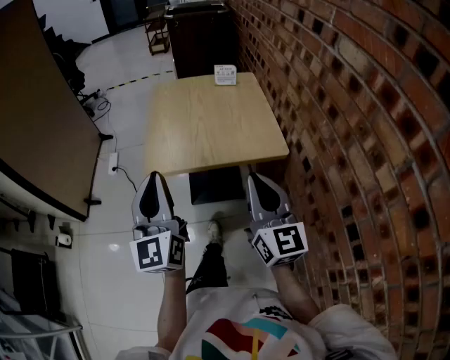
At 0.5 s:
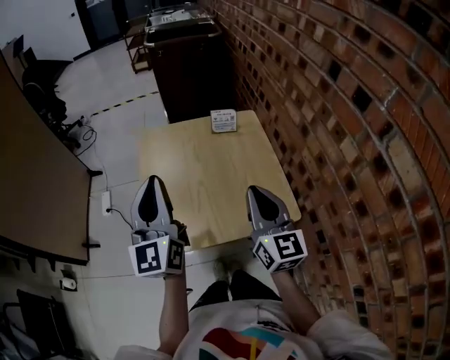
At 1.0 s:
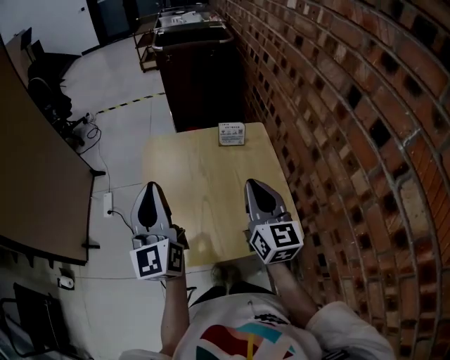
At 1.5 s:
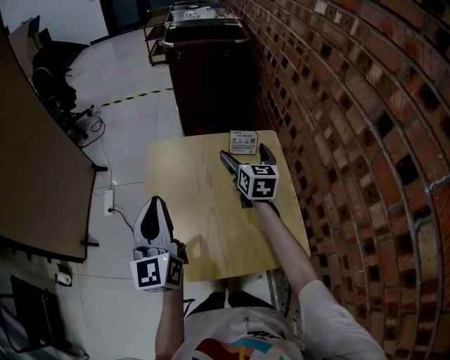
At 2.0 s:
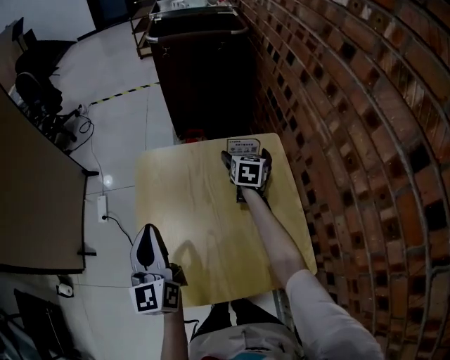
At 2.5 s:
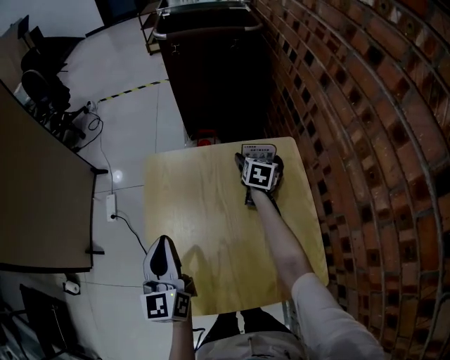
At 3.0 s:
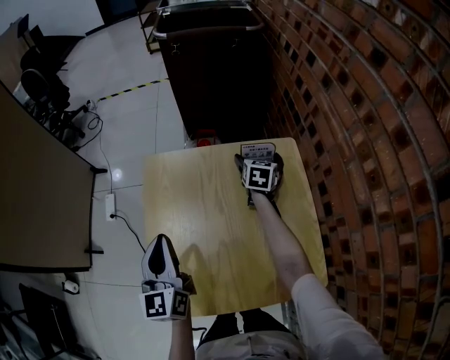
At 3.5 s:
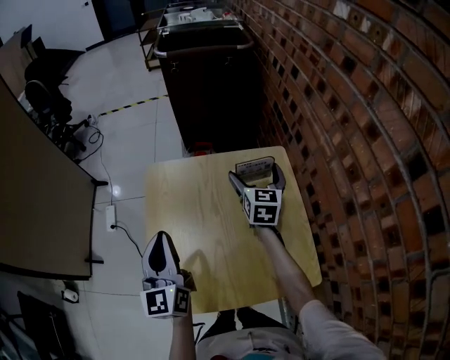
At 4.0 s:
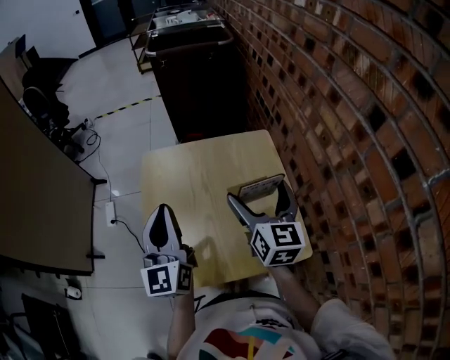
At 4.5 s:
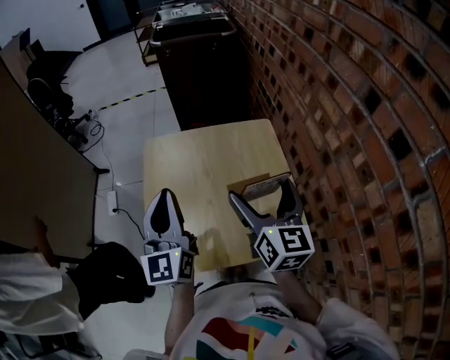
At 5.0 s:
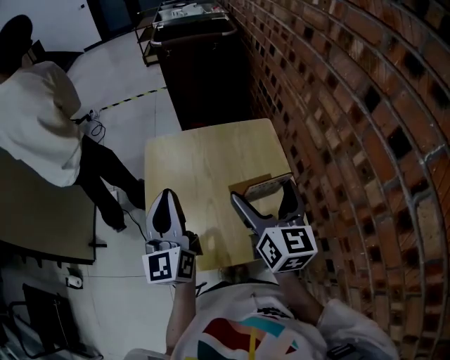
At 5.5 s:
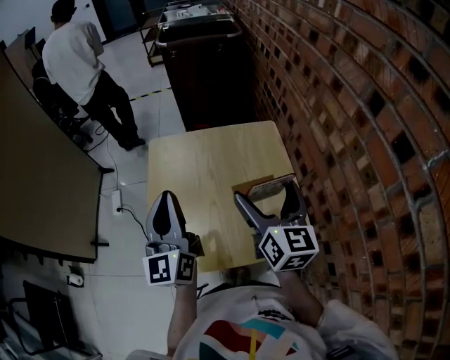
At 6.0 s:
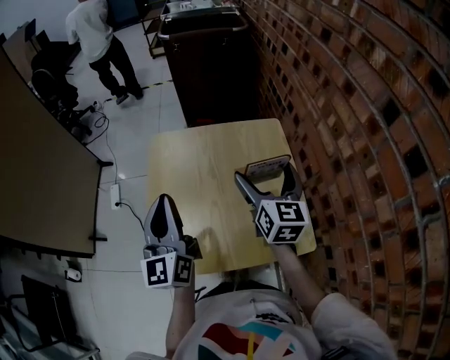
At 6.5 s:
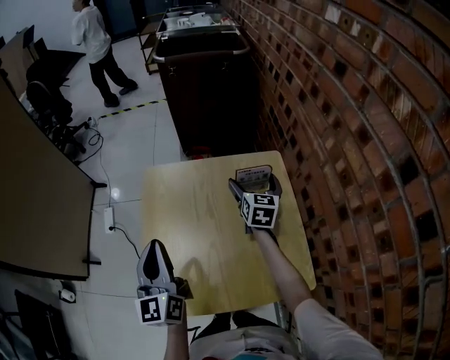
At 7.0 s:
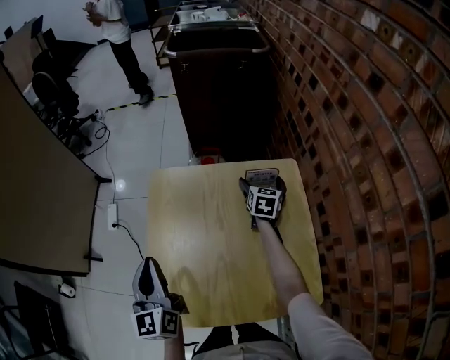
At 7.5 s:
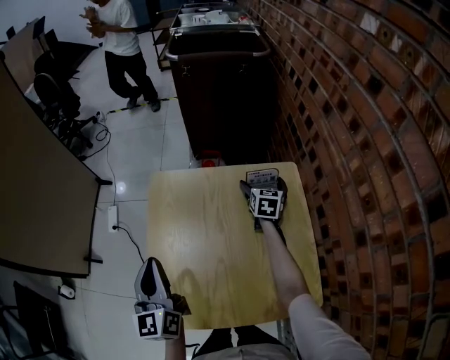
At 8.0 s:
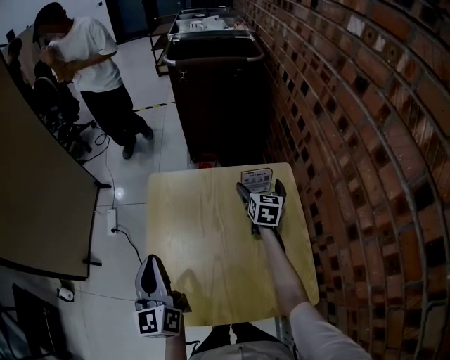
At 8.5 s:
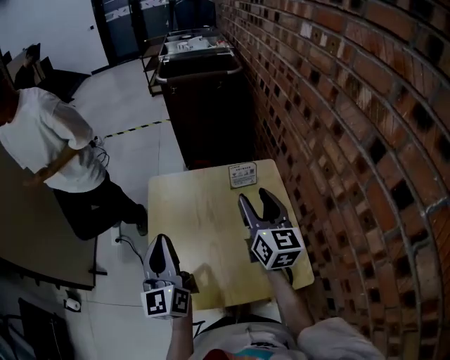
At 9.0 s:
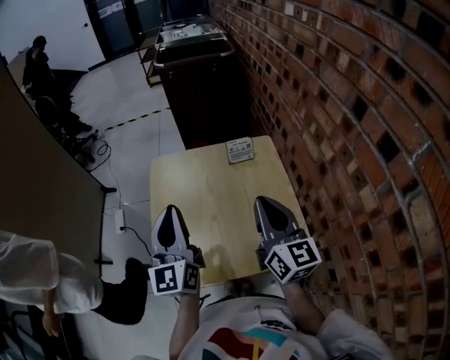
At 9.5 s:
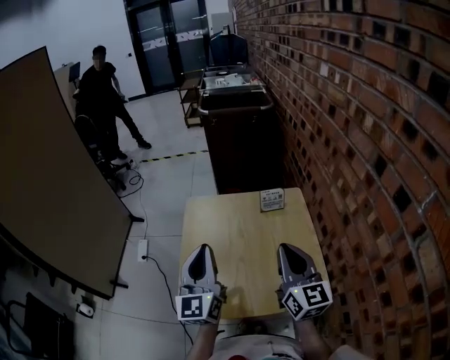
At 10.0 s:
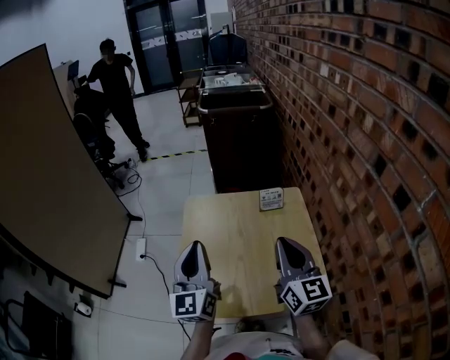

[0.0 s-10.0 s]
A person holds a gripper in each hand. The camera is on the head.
0.0 to 2.0 s: The right gripper is displaced forward by about 70 cm, tips its fingers downward by about 40 degrees, and opens its fingers. Meanwhile the left gripper travels forward by about 40 cm.
2.0 to 4.0 s: The right gripper travels backward and upward by about 35 cm, and rotates roughly 30 degrees. The left gripper goes approximately 10 cm upward and to the right.
4.0 to 6.0 s: The right gripper reaches about 5 cm backward, then returns.
6.0 to 8.0 s: The right gripper travels forward and downward by approximately 30 cm. The left gripper moves downward and to the left, about 10 cm.
8.0 to 10.0 s: The left gripper heads upward and backward, covering about 10 cm. The right gripper is displaced backward and upward by about 40 cm, rotates approximately 30 degrees, and closes its fingers.

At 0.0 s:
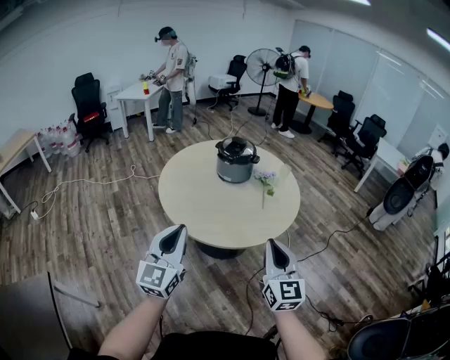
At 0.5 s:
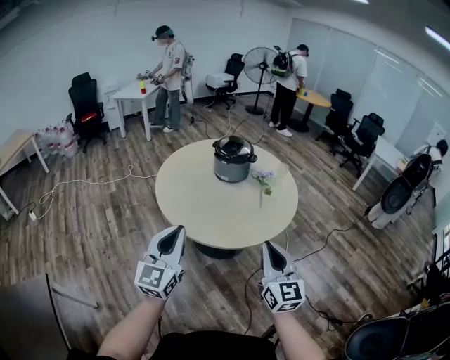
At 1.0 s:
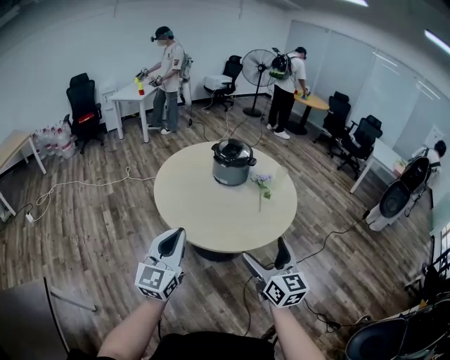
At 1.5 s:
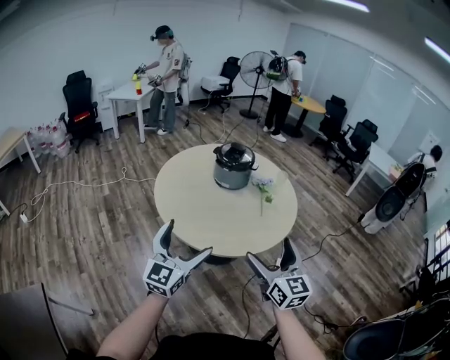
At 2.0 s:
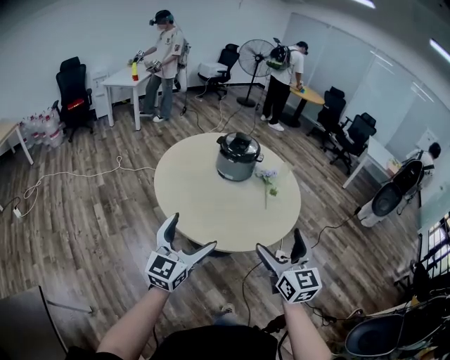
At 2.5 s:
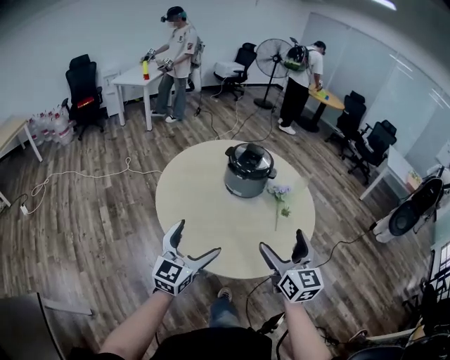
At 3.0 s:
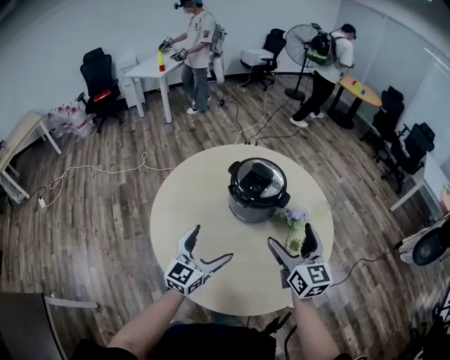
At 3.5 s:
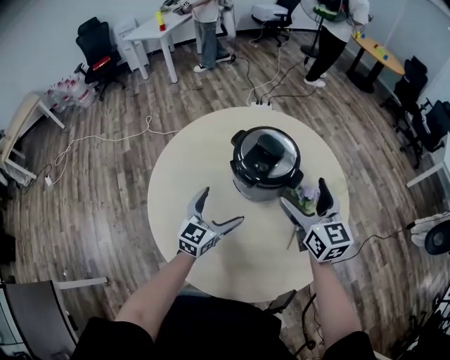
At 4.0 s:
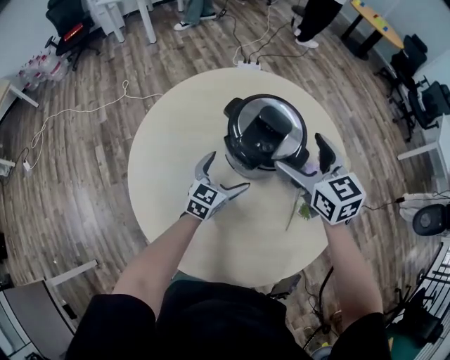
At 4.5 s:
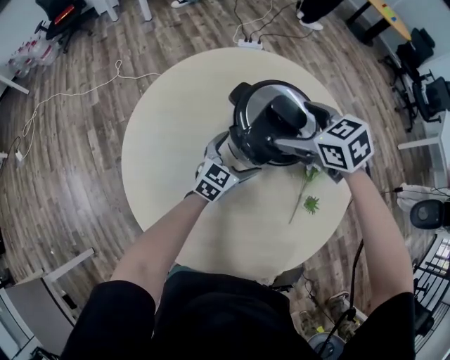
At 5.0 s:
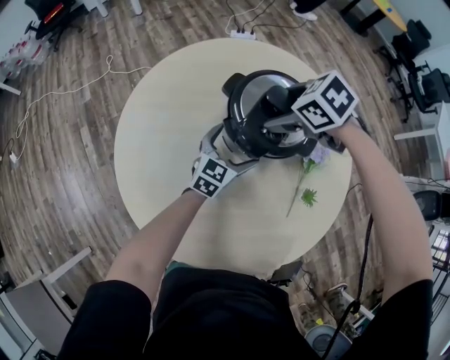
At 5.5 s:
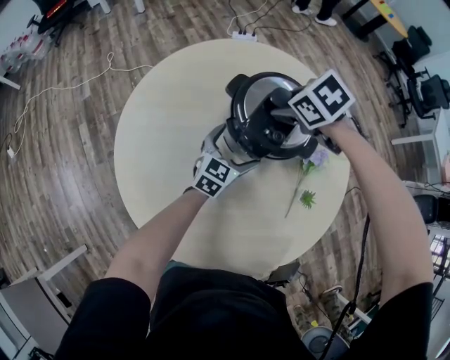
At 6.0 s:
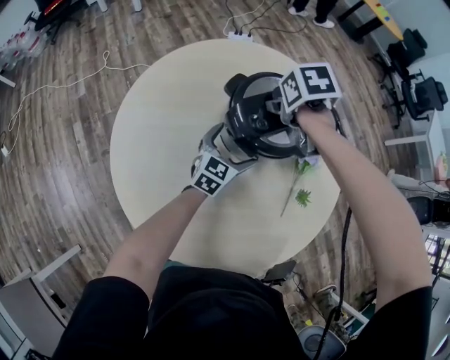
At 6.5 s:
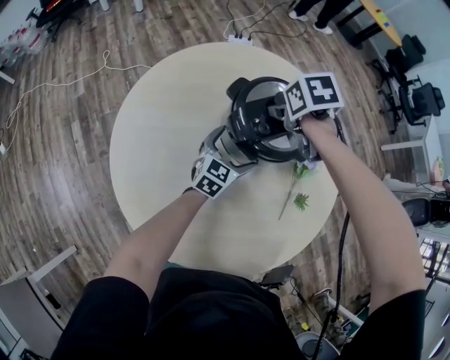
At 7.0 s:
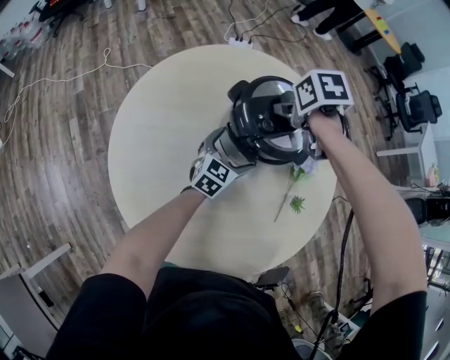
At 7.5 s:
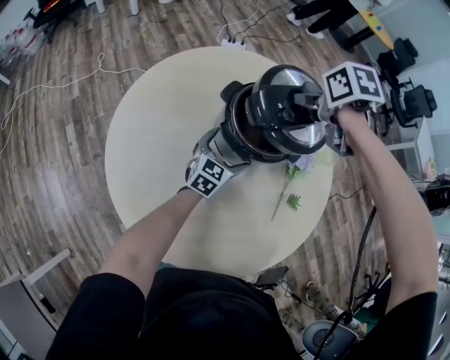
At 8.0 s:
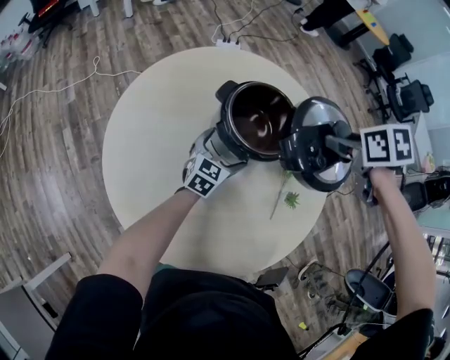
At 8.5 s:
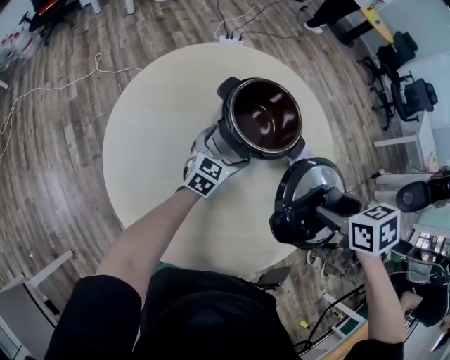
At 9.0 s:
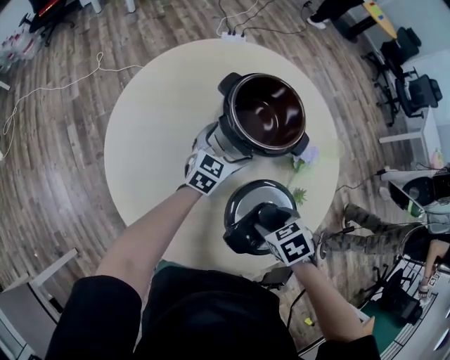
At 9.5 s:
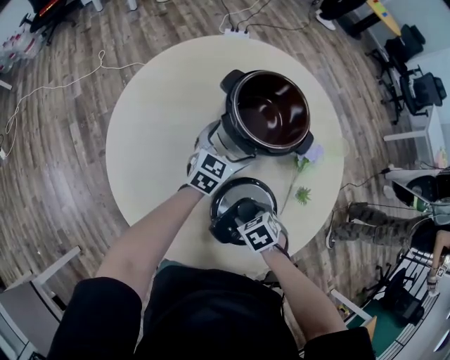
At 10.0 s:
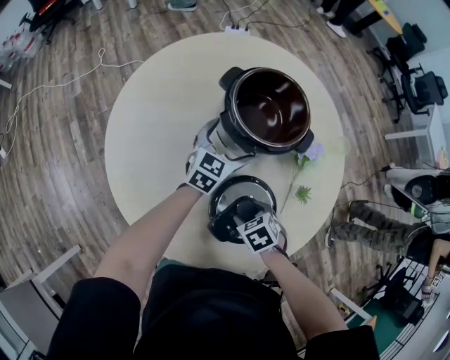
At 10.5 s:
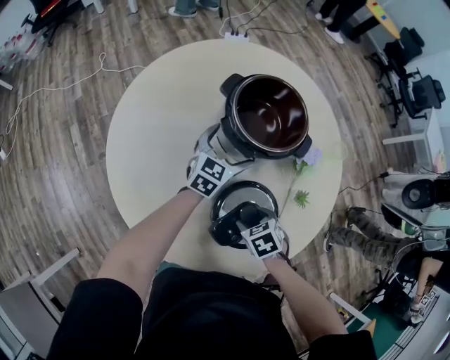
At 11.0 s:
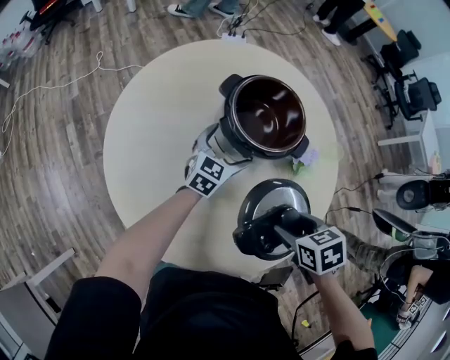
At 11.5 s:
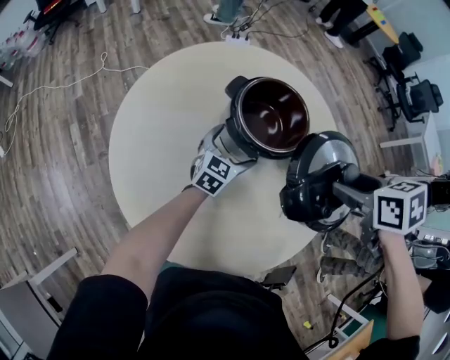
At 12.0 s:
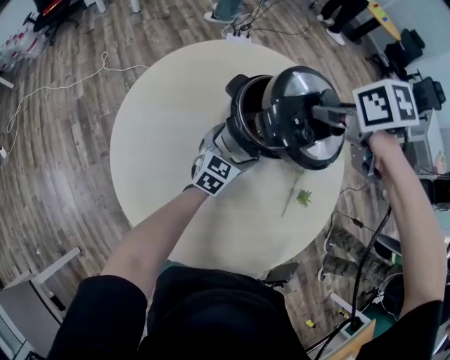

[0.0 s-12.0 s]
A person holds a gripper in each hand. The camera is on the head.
0.0 to 2.0 s: The left gripper moves forward and downward, roughly 10 cm, and opens its fingers. The right gripper heads to the left and forward, covering about 10 cm, and opens its fingers.
2.0 to 4.0 s: The pair of grippers is taken forward, approximately 60 cm. The left gripper goes about 30 cm downward, and rotates roughly 30 degrees. Meanwhile the right gripper rotates some 30 degrees.
4.0 to 6.0 s: The right gripper shifts by roughly 15 cm, points its fingers about 50 degrees further downward, and closes. Meanwhile the left gripper shifts by some 5 cm.
6.0 to 8.0 s: The right gripper ends up approximately 20 cm from where it was.
8.0 to 10.0 s: The right gripper is displaced downward by approximately 30 cm, and swivels about 20 degrees.
10.0 to 12.0 s: The right gripper shifts about 30 cm upward, and rotates roughly 20 degrees.

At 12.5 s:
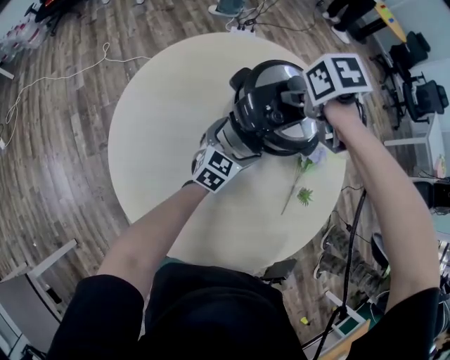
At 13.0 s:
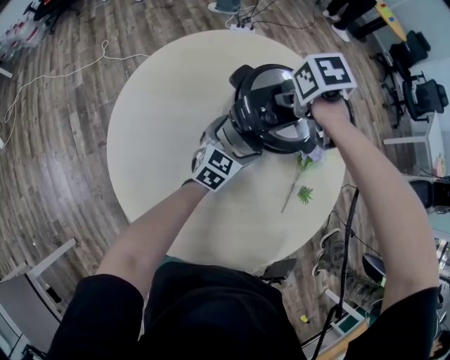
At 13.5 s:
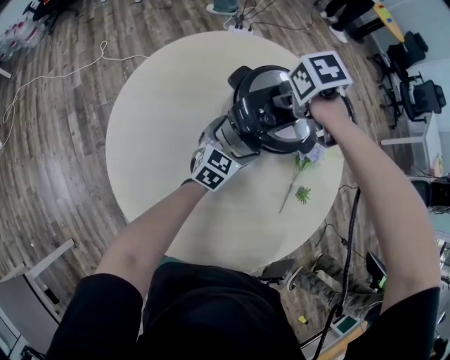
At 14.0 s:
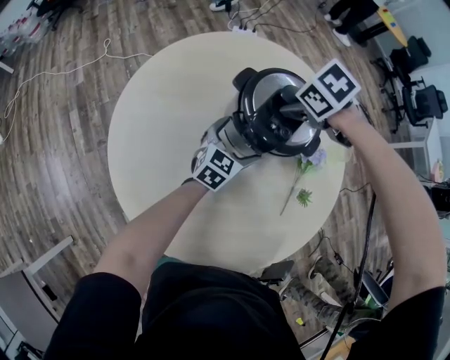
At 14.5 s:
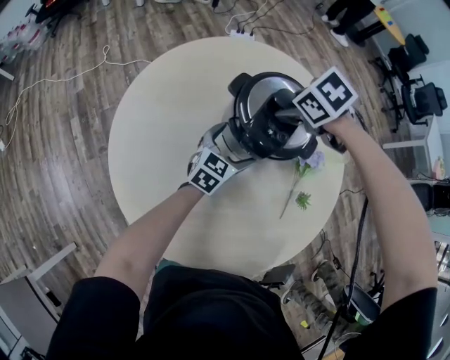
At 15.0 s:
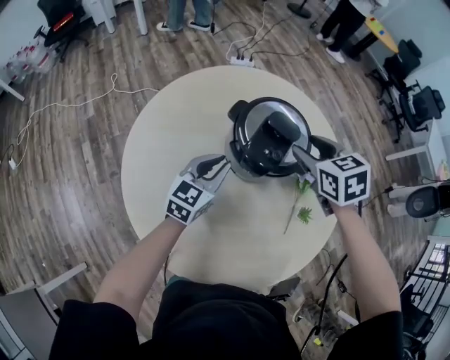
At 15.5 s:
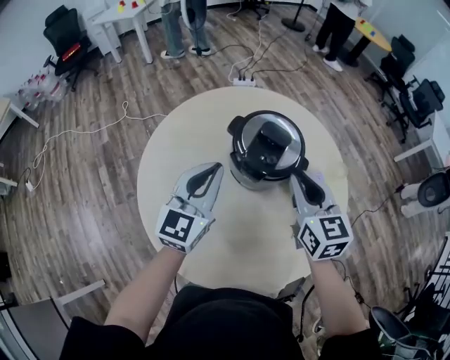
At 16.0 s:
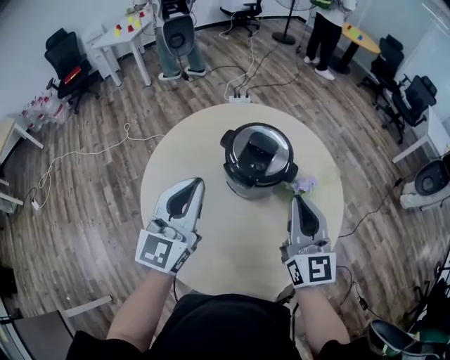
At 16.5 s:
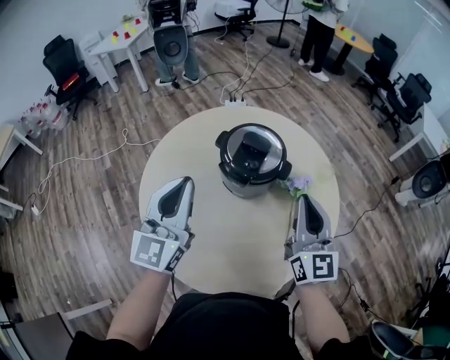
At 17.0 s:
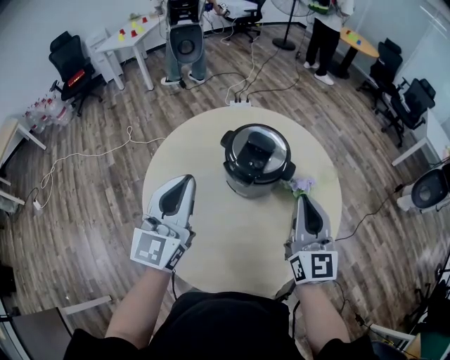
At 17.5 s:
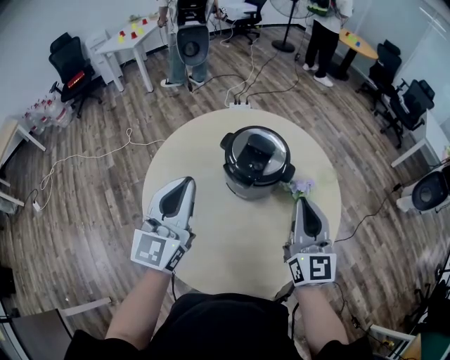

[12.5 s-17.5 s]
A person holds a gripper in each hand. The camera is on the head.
12.5 to 15.0 s: The right gripper changes place by approximately 10 cm, and changes its angle by approximately 30 degrees. Meanwhile the left gripper moves upward, roughly 10 cm, and closes.
15.0 to 17.5 s: The left gripper is displaced upward and backward by some 30 cm, and swivels about 30 degrees, while the right gripper shifts roughly 25 cm backward and upward, points its fingers about 50 degrees further upward, and closes its fingers.
